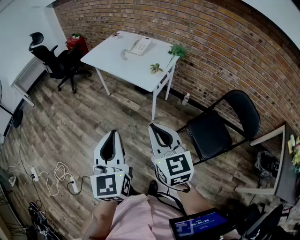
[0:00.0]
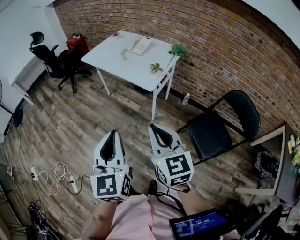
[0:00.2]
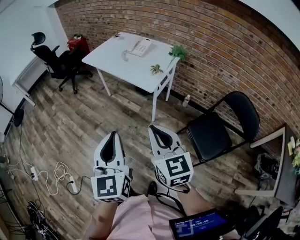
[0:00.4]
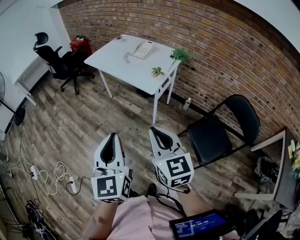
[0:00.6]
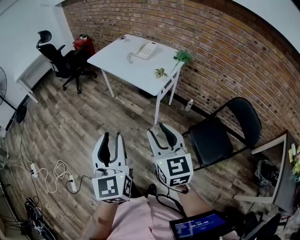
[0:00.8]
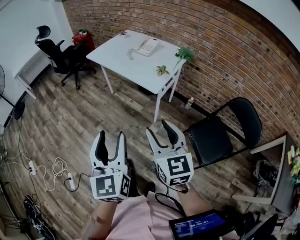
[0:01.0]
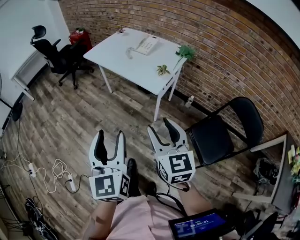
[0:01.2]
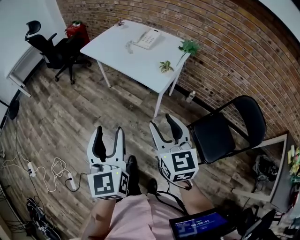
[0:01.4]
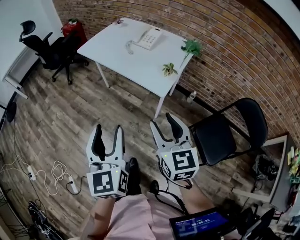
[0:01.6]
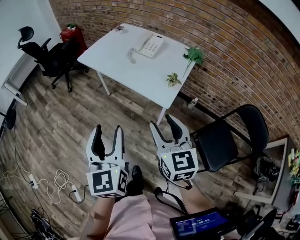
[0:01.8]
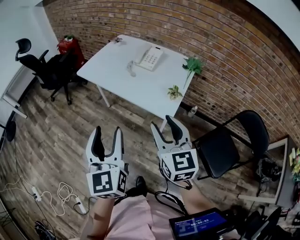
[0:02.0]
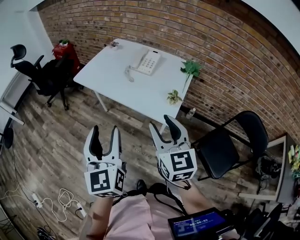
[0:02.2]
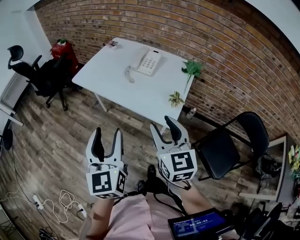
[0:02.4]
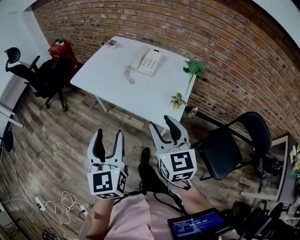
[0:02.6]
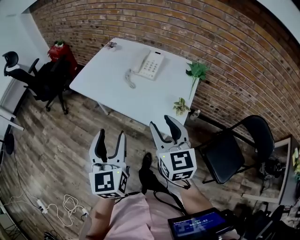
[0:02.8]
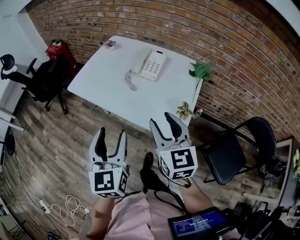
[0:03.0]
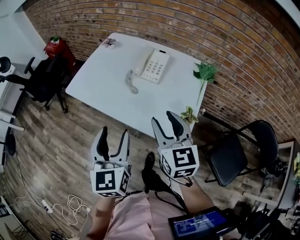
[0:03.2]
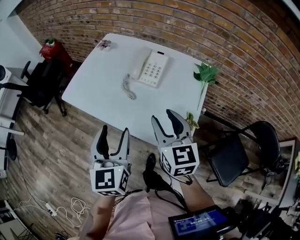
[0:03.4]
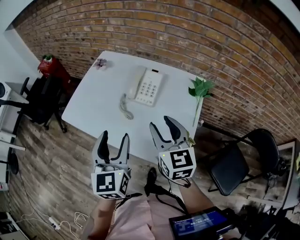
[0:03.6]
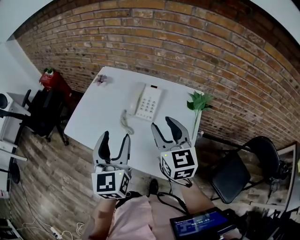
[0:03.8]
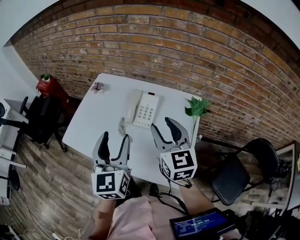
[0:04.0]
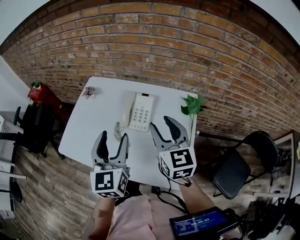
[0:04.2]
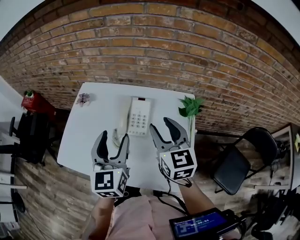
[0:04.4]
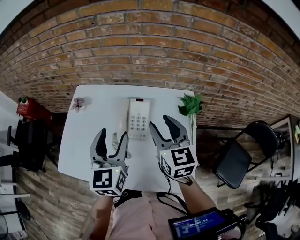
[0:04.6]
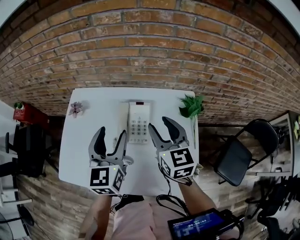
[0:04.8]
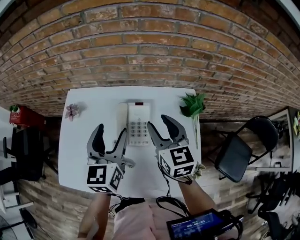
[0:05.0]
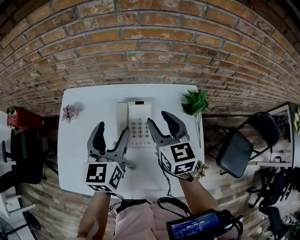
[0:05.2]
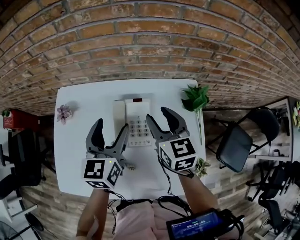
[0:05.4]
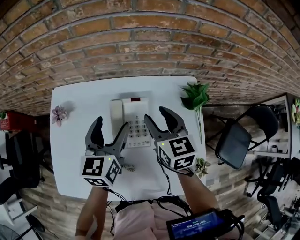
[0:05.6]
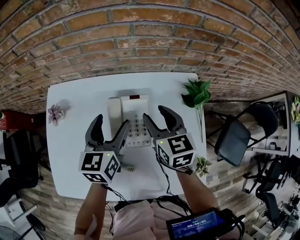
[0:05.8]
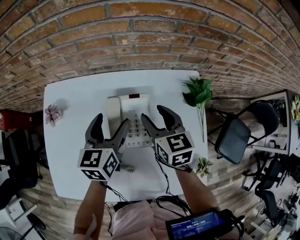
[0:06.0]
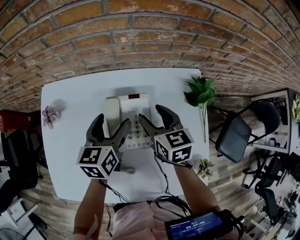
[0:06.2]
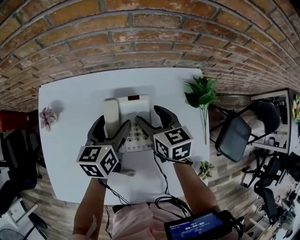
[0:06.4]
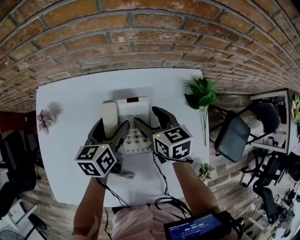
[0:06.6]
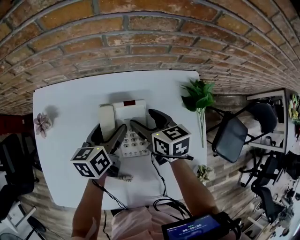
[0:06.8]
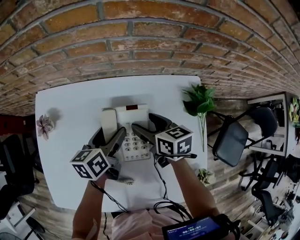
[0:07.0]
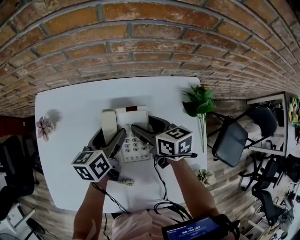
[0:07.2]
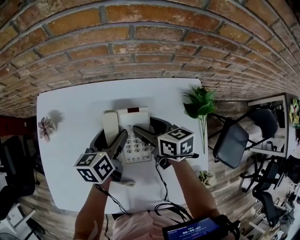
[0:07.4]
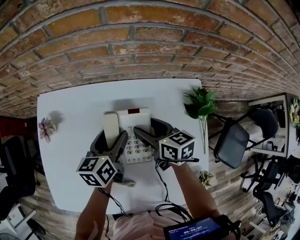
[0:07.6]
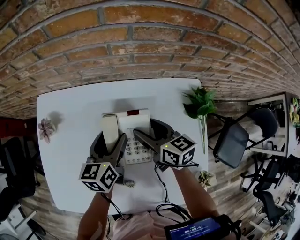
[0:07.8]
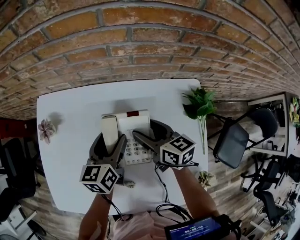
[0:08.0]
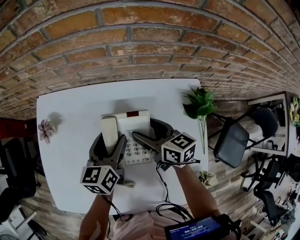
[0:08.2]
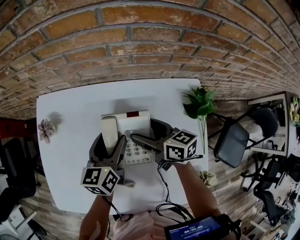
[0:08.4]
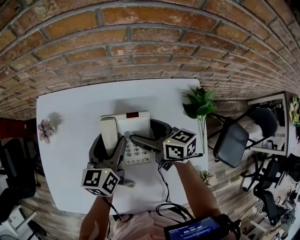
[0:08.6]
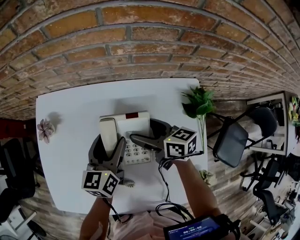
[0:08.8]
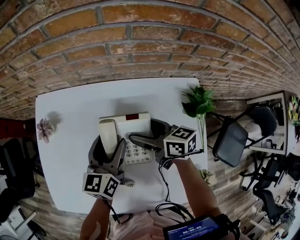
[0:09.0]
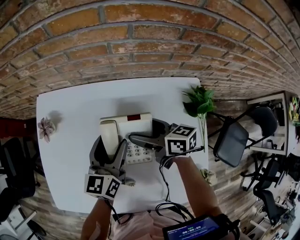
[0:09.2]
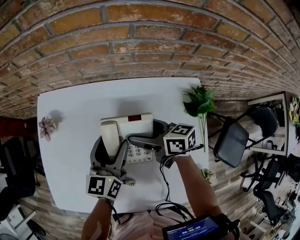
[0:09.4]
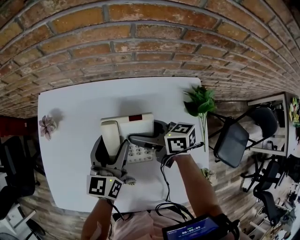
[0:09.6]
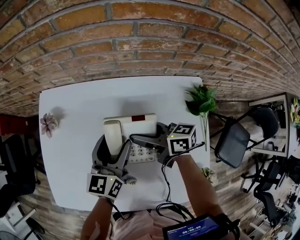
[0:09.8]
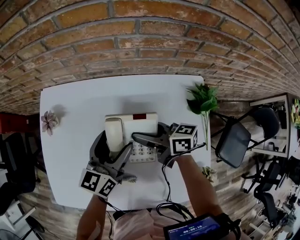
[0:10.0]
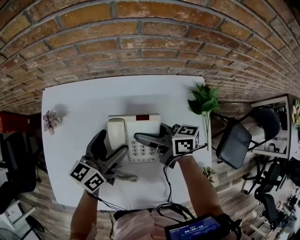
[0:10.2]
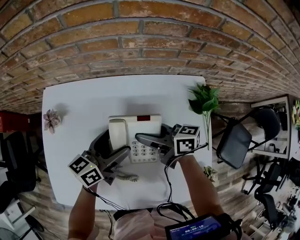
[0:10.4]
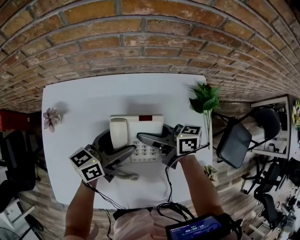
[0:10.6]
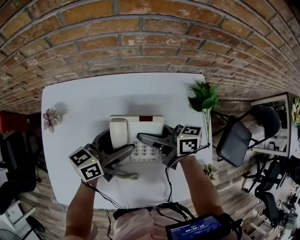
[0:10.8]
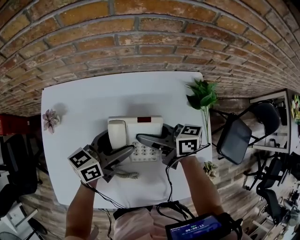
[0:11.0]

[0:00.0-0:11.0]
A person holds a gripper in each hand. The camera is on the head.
0:00.0 to 0:01.6: The grippers both shift forward by some 15 cm. The left gripper opens its fingers, while the right gripper opens up.
0:01.6 to 0:03.2: Both grippers move forward, some 30 cm.
0:03.2 to 0:04.8: Both grippers travel together forward, some 30 cm. The left gripper swivels approximately 20 degrees.
0:04.8 to 0:06.2: Both grippers travel together downward and forward, about 20 cm. The left gripper changes its angle by about 30 degrees. The right gripper rotates approximately 20 degrees.
0:07.8 to 0:09.4: The grippers make only small movements.
0:09.4 to 0:11.0: The right gripper closes its fingers, while the left gripper turns by roughly 40 degrees.

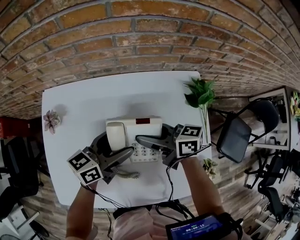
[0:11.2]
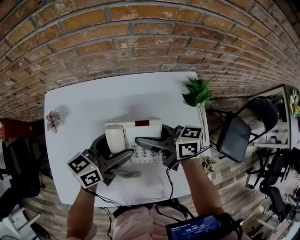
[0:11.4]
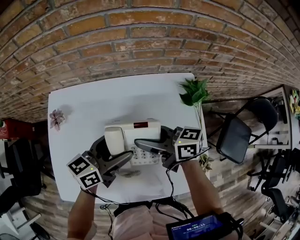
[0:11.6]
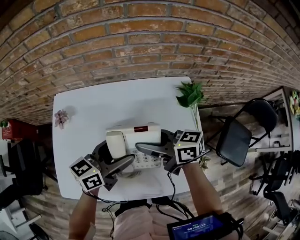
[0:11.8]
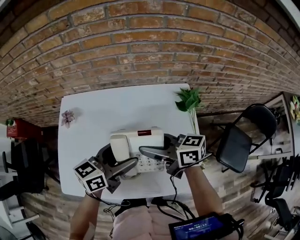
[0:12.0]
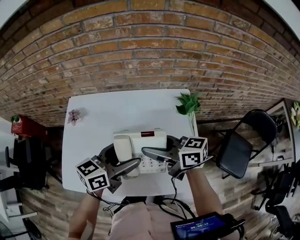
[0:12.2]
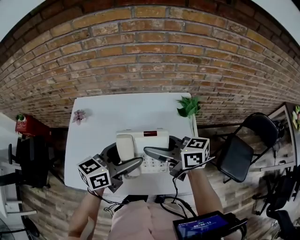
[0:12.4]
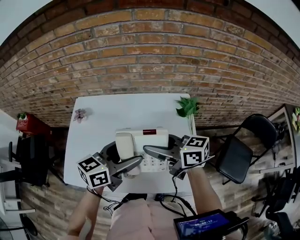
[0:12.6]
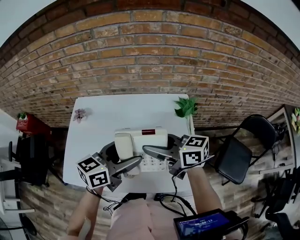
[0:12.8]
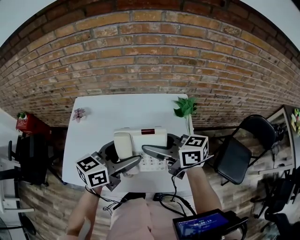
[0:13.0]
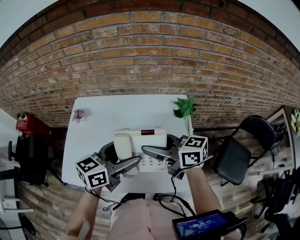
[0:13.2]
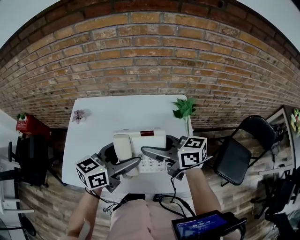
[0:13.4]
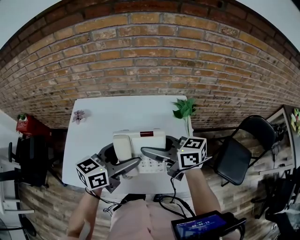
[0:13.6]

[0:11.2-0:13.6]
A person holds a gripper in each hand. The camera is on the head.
0:11.2 to 0:12.4: The two grippers go roughly 20 cm upward and backward.
0:12.4 to 0:13.6: There are only small adjustments of the grippers.

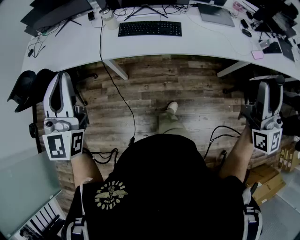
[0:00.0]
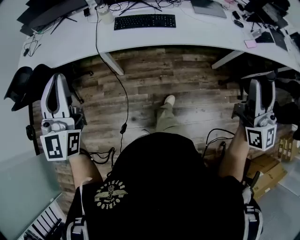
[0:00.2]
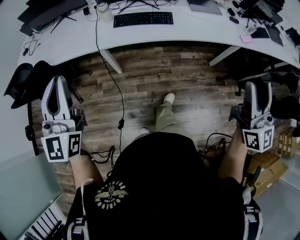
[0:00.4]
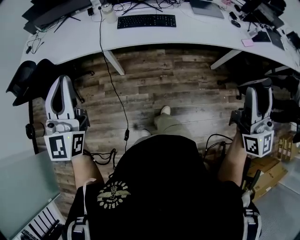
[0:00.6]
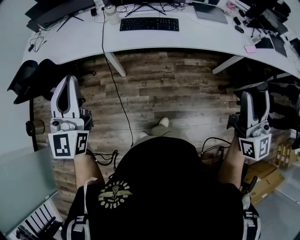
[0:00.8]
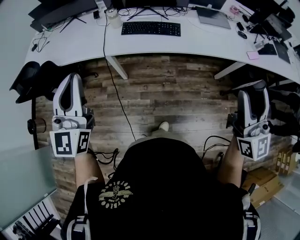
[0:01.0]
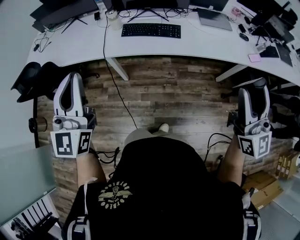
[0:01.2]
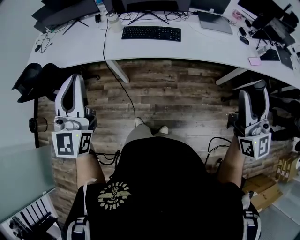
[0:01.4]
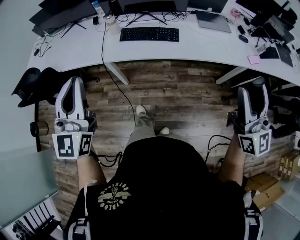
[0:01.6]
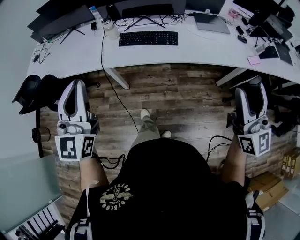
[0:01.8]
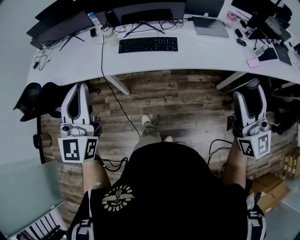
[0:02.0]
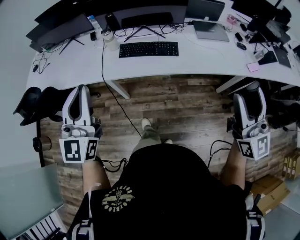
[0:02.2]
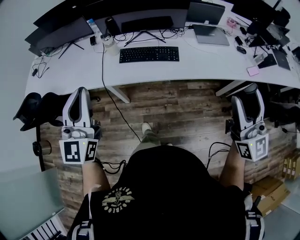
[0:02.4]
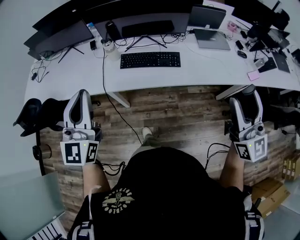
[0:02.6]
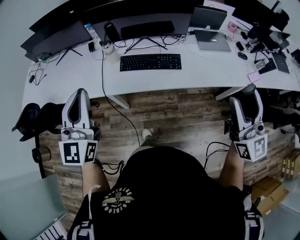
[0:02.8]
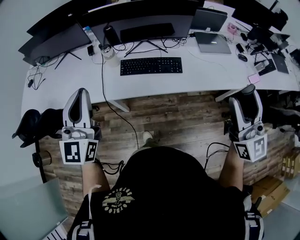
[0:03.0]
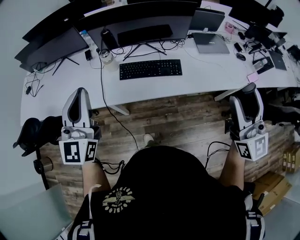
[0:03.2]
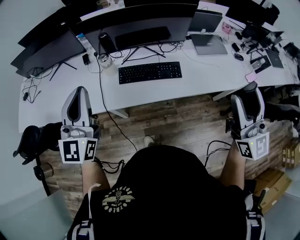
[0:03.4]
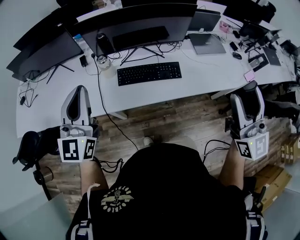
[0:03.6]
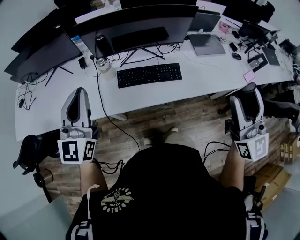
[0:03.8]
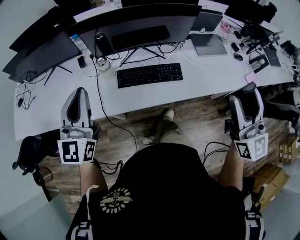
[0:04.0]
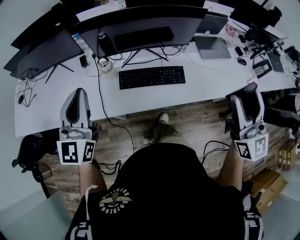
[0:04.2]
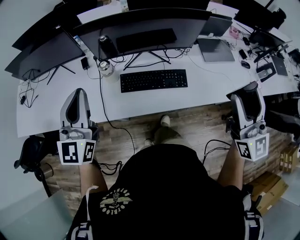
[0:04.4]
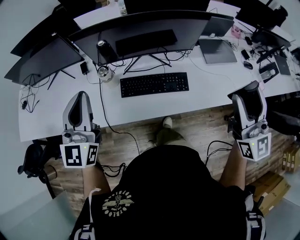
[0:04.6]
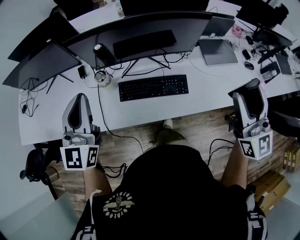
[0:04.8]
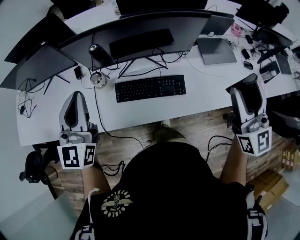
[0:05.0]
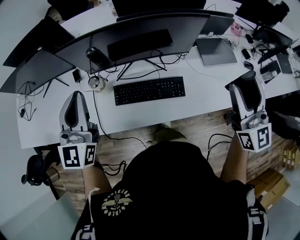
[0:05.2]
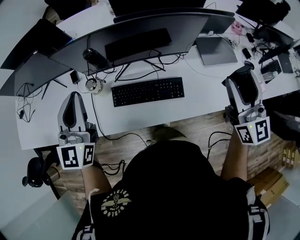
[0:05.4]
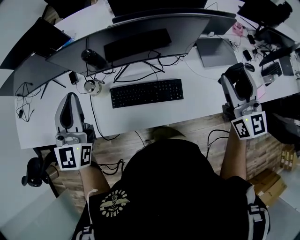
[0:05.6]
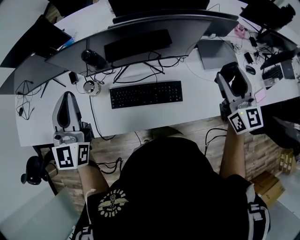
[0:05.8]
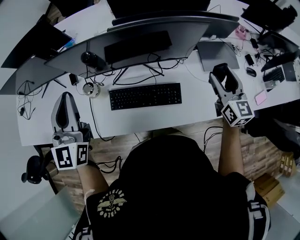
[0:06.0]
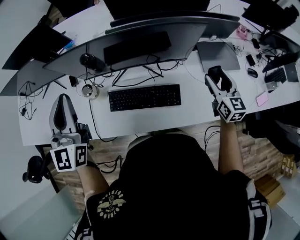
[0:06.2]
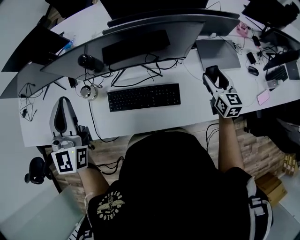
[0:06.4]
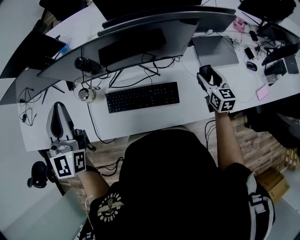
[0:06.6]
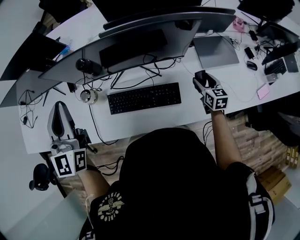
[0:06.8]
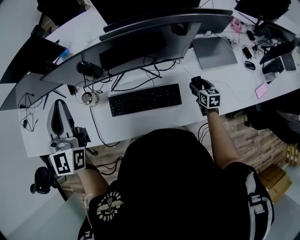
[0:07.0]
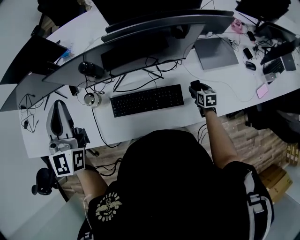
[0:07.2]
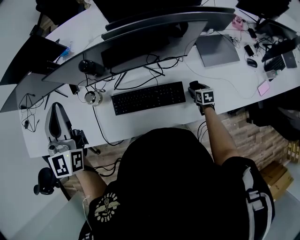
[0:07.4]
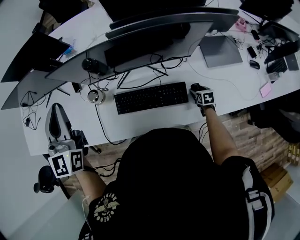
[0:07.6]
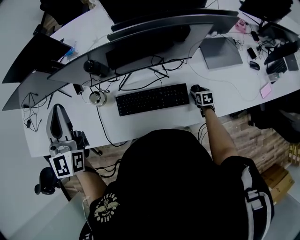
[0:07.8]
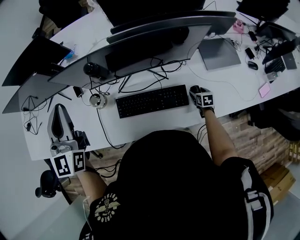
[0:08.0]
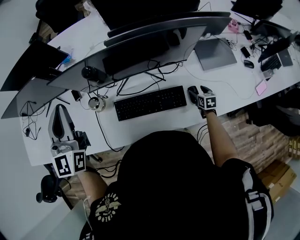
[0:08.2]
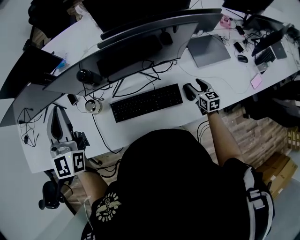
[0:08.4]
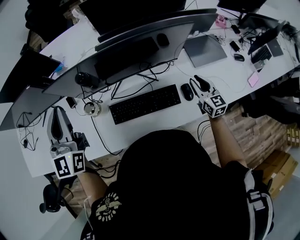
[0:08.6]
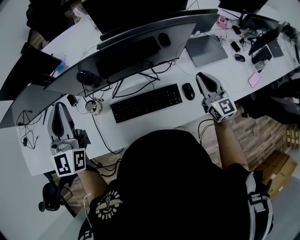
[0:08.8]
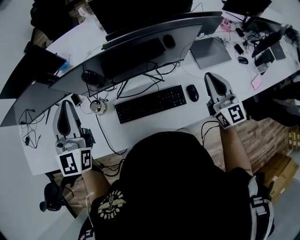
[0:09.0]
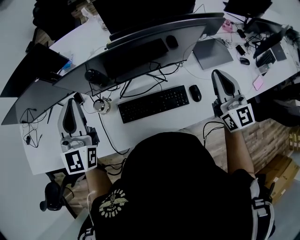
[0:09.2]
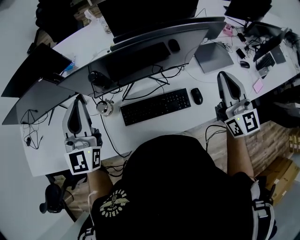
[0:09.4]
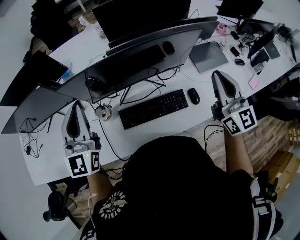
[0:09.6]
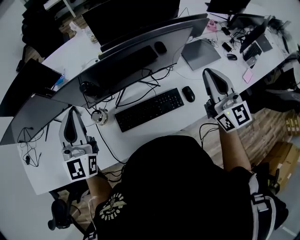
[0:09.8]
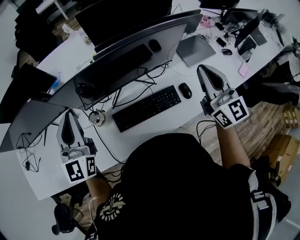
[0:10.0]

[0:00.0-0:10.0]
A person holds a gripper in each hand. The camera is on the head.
0:00.0 to 0:01.4: The left gripper travels backward by about 5 cm. Meanwhile the right gripper travels backward and back again, some 10 cm each way.
0:01.4 to 0:02.8: Both grippers travel together forward, roughly 15 cm.
0:02.8 to 0:04.2: The left gripper shifts roughly 15 cm forward; the right gripper travels forward and to the left by about 15 cm.
0:04.2 to 0:05.8: The left gripper moves forward, approximately 15 cm; the right gripper is displaced forward and downward by approximately 30 cm.
0:05.8 to 0:07.2: The right gripper goes some 40 cm downward, and angles its fingers downward, by about 50 degrees.
0:07.2 to 0:08.6: The right gripper heads upward, covering roughly 20 cm, tilts its fingers some 30 degrees upward, and closes up.
0:08.6 to 0:10.0: The right gripper shifts some 25 cm upward, and changes its angle by some 20 degrees.
